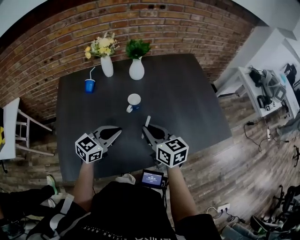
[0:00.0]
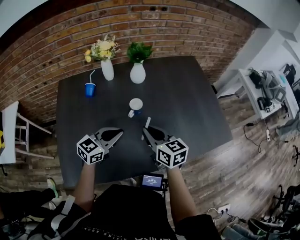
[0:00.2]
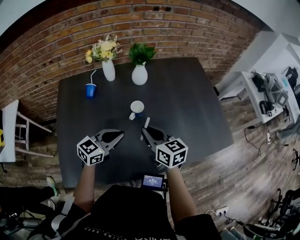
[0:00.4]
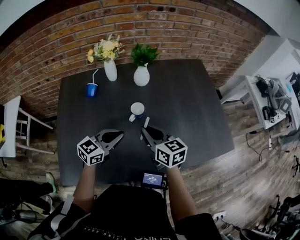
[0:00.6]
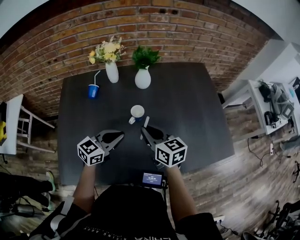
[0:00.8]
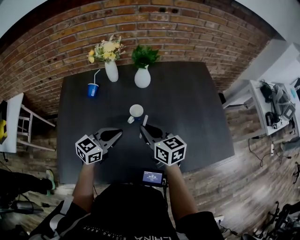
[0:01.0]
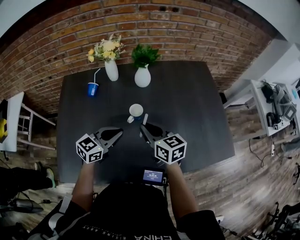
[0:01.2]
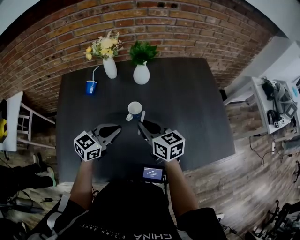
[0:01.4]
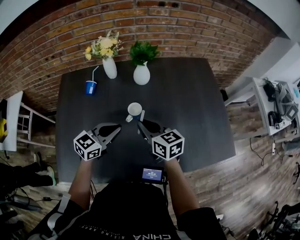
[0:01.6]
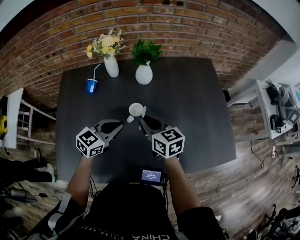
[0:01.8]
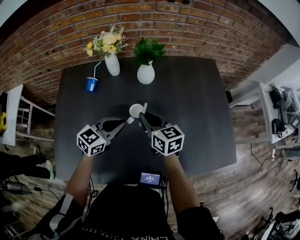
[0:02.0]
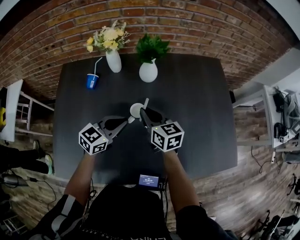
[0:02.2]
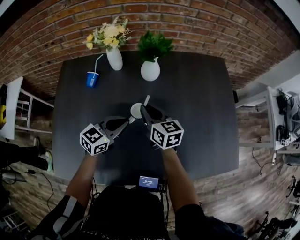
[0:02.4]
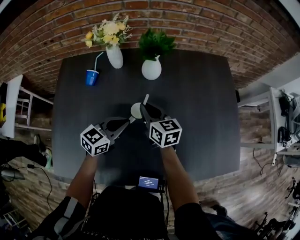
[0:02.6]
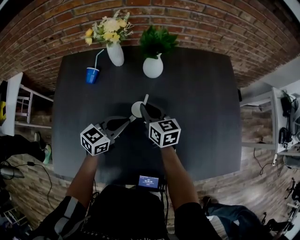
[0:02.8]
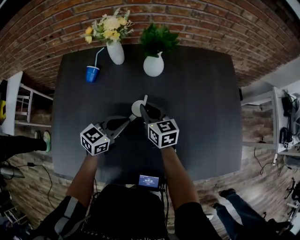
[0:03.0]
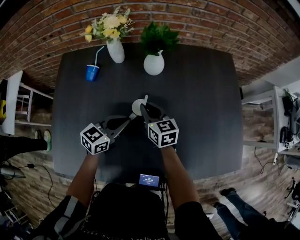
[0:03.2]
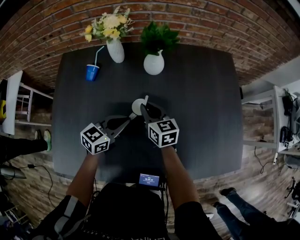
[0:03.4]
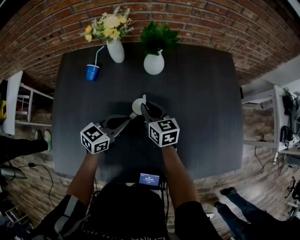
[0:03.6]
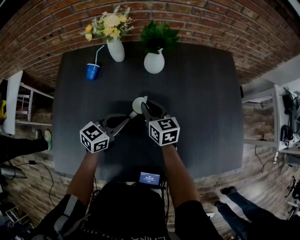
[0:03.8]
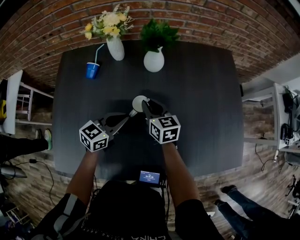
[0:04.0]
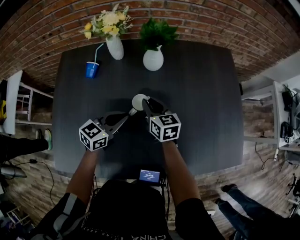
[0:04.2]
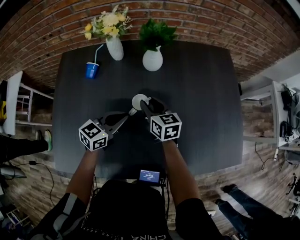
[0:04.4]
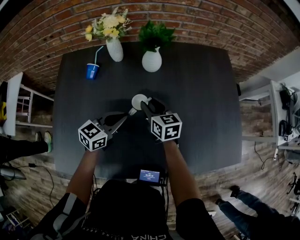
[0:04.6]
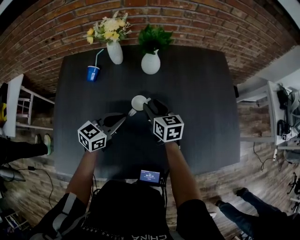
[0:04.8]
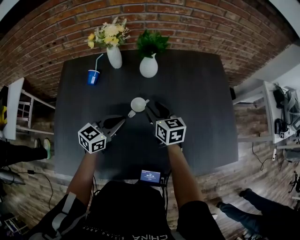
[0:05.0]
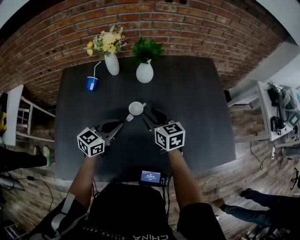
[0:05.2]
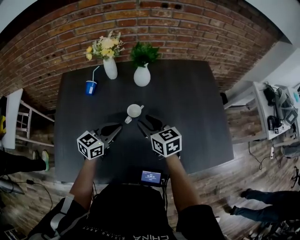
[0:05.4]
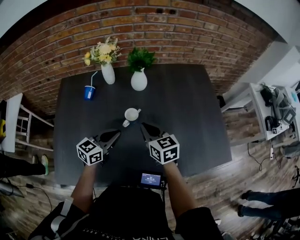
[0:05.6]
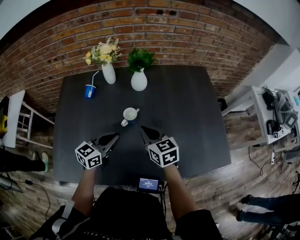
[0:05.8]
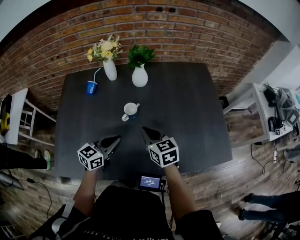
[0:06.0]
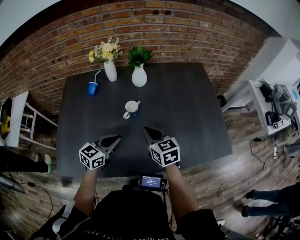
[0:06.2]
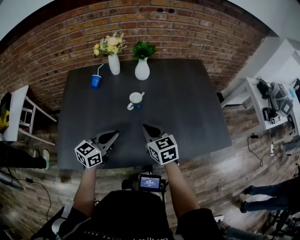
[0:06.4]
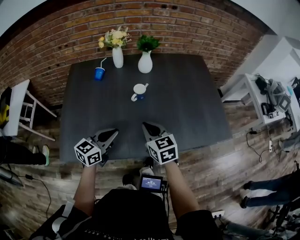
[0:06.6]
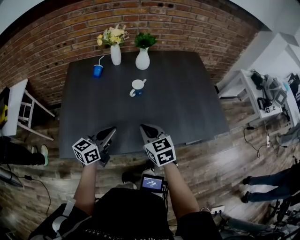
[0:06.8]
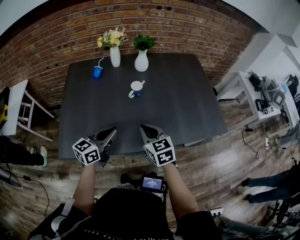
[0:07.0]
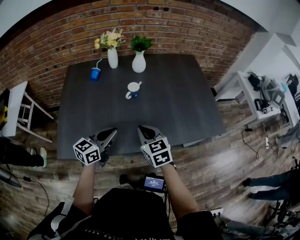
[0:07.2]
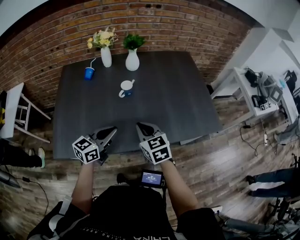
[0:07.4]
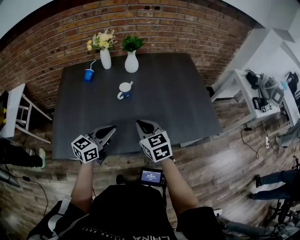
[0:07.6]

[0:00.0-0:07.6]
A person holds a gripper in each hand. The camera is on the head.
0:00.0 to 0:01.6: Both grippers travel together forward, roughly 10 cm.
0:01.6 to 0:03.0: The right gripper moves forward and downward, approximately 15 cm, while the left gripper shifts about 10 cm downward and forward.
0:03.0 to 0:04.6: The right gripper opens up.
0:04.6 to 0:06.0: The left gripper is displaced backward by some 10 cm, while the right gripper is displaced backward, upward and to the right by roughly 15 cm, and closes.
0:06.0 to 0:07.6: Both grippers move backward, some 15 cm.

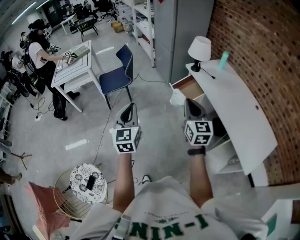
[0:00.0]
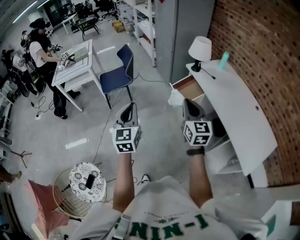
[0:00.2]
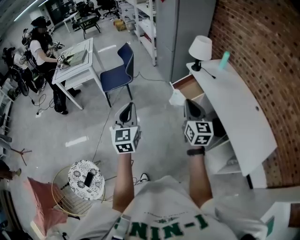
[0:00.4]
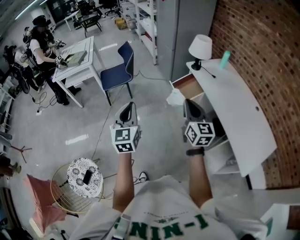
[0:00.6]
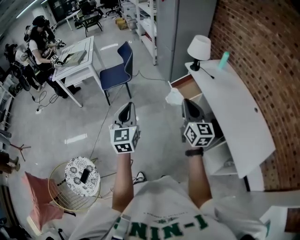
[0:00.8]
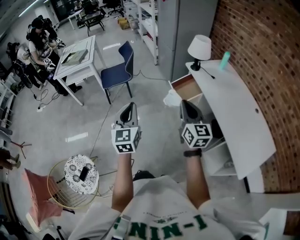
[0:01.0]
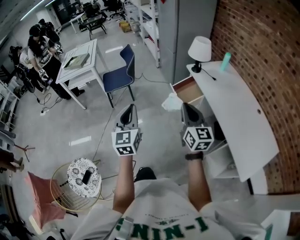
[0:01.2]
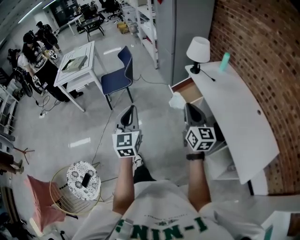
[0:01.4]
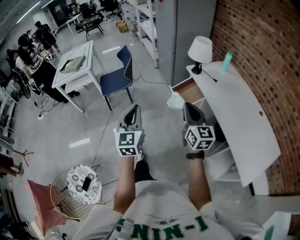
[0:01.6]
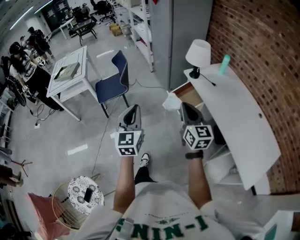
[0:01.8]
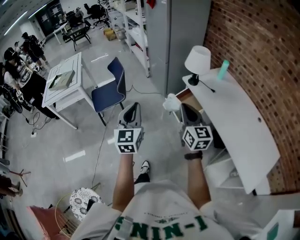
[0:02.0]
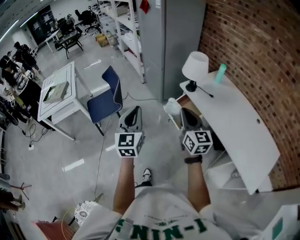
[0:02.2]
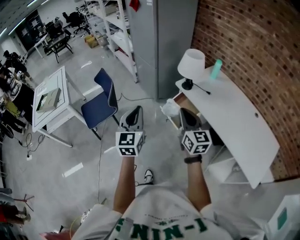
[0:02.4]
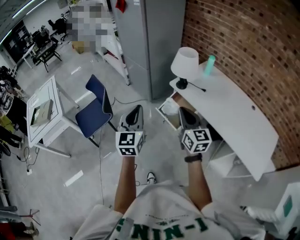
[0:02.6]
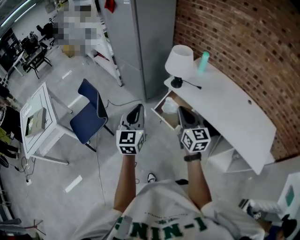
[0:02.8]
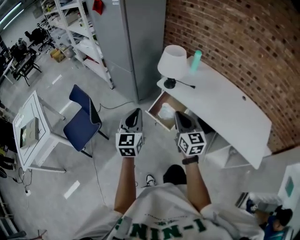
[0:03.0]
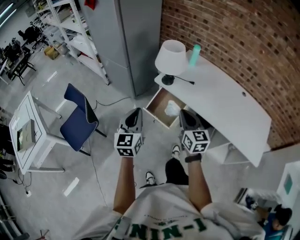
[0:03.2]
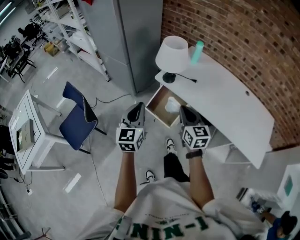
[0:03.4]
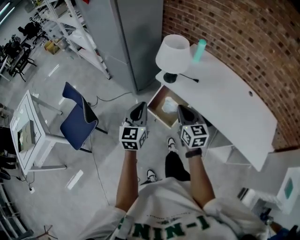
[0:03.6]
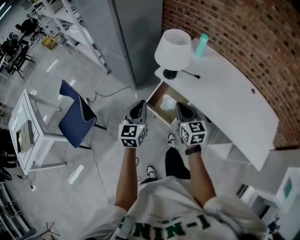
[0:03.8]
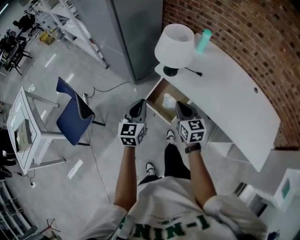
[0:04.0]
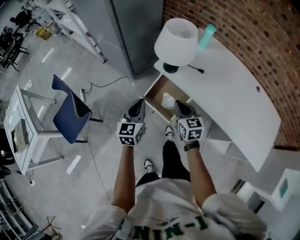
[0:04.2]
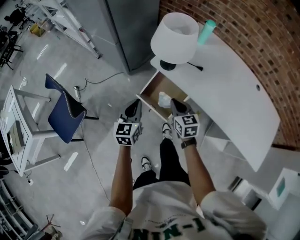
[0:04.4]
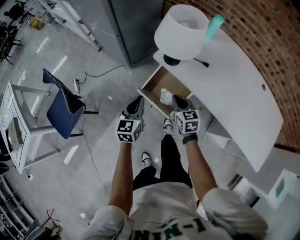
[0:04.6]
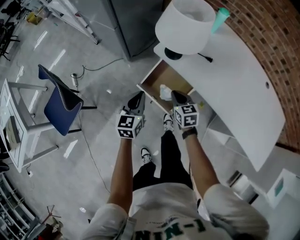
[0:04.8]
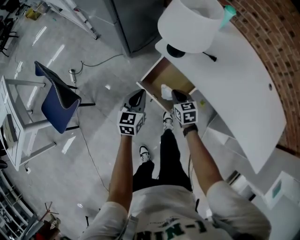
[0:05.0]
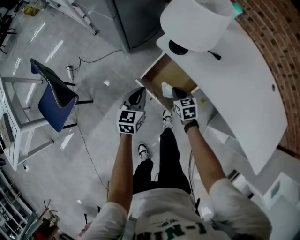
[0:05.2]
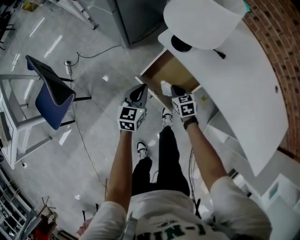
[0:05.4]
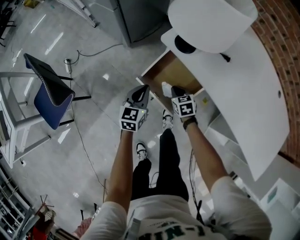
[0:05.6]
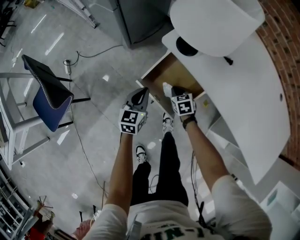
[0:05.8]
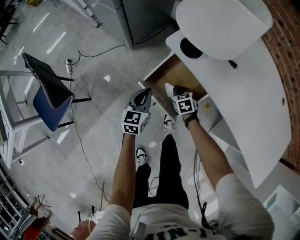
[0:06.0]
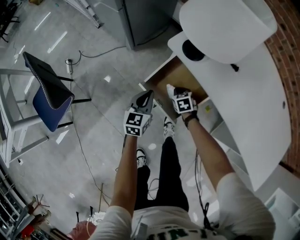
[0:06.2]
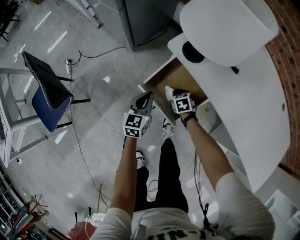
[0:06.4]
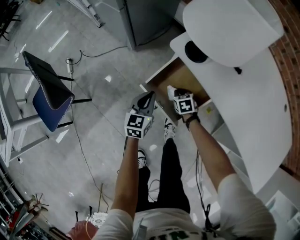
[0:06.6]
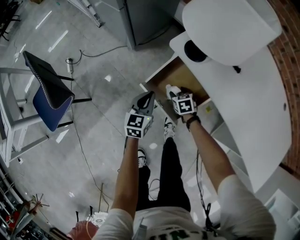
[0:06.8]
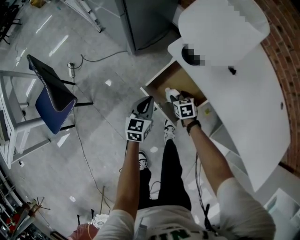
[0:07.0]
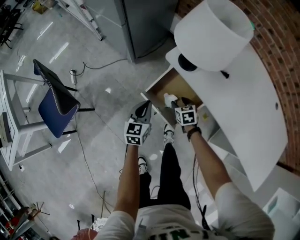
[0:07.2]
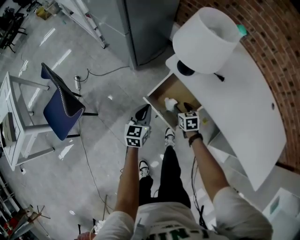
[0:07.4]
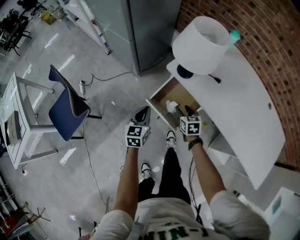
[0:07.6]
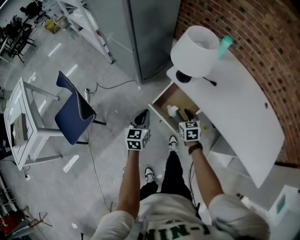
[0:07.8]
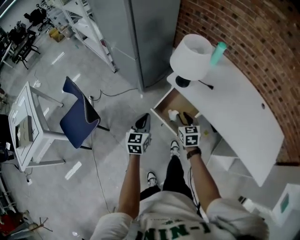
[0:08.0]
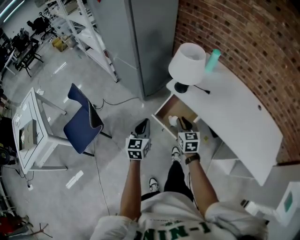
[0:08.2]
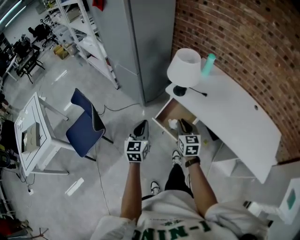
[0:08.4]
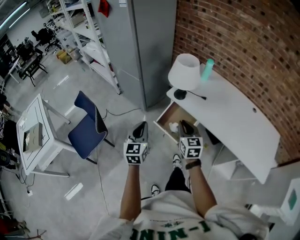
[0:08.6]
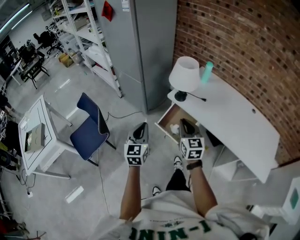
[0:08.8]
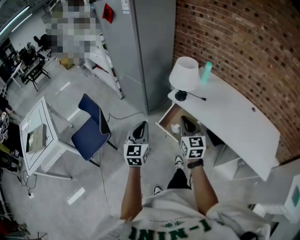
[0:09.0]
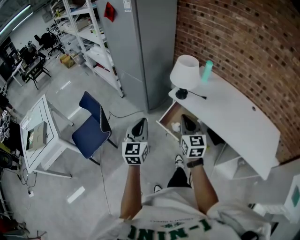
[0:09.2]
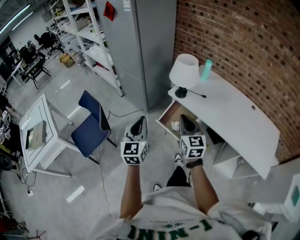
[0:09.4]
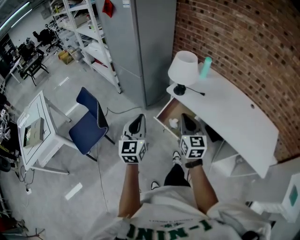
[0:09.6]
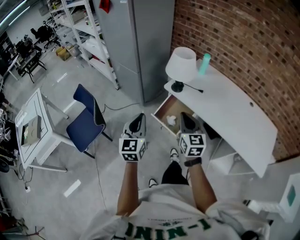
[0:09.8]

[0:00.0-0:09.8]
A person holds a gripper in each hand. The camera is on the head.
0:00.0 to 0:01.4: The two grippers go about 5 cm to the right.
0:01.4 to 0:02.8: The left gripper shifts by approximately 40 cm, and turns by about 30 degrees; the right gripper shifts by approximately 30 cm, and rotates approximately 20 degrees.
0:02.8 to 0:04.2: The grippers both shift downward and forward by about 30 cm. The right gripper swivels about 20 degrees.
0:04.2 to 0:05.6: Both grippers travel together downward, some 30 cm. The right gripper changes its angle by some 30 degrees.
0:05.6 to 0:07.0: The right gripper opens up.
0:07.0 to 0:08.4: Both grippers travel together upward and backward, about 40 cm. The right gripper points its fingers some 40 degrees further upward, and closes its fingers.
0:08.4 to 0:09.8: Both grippers move upward and backward, roughly 10 cm.

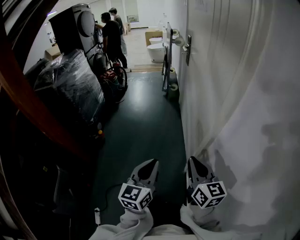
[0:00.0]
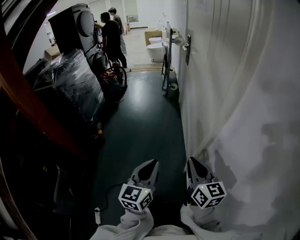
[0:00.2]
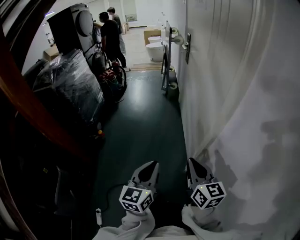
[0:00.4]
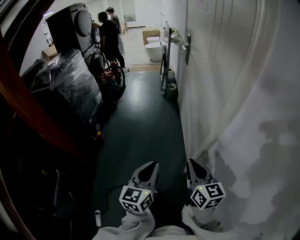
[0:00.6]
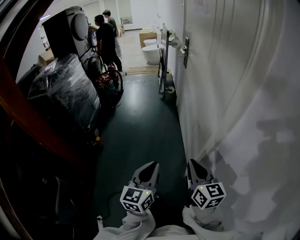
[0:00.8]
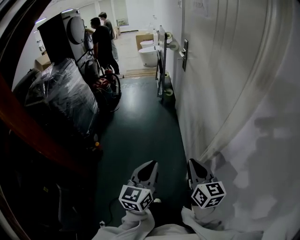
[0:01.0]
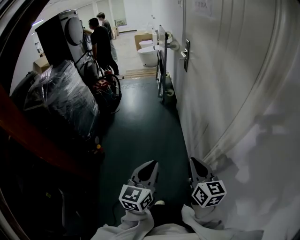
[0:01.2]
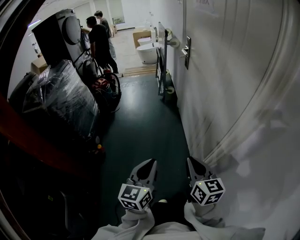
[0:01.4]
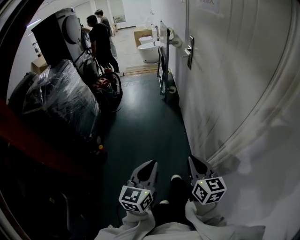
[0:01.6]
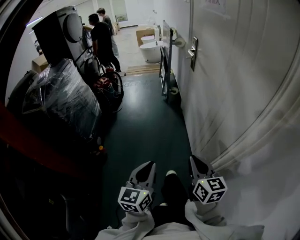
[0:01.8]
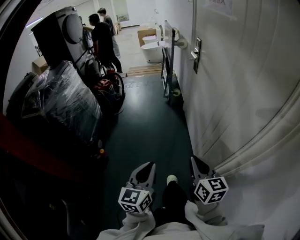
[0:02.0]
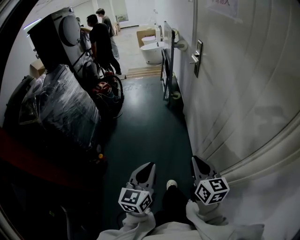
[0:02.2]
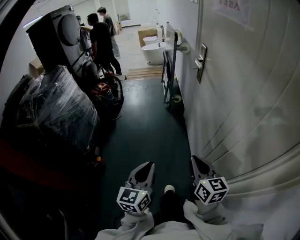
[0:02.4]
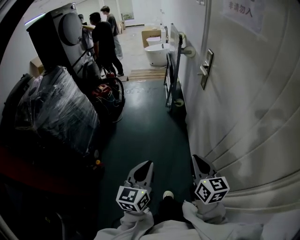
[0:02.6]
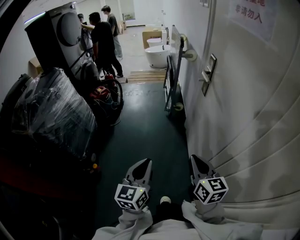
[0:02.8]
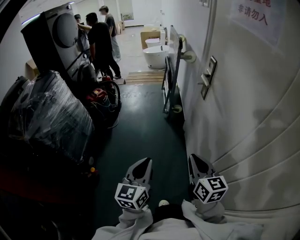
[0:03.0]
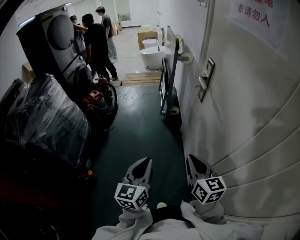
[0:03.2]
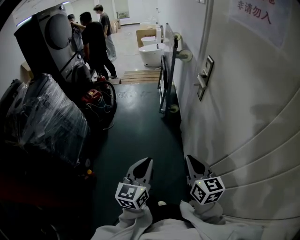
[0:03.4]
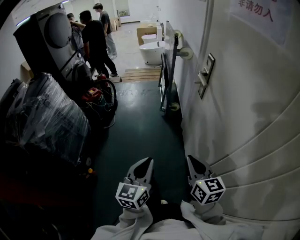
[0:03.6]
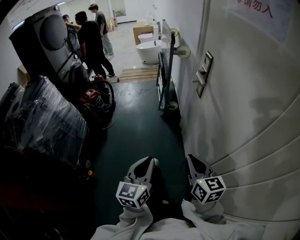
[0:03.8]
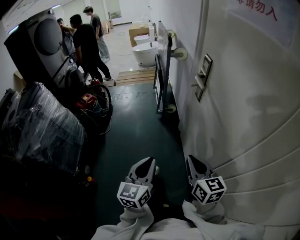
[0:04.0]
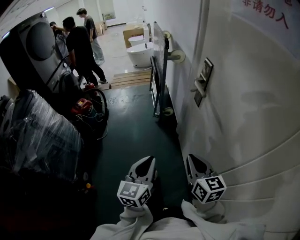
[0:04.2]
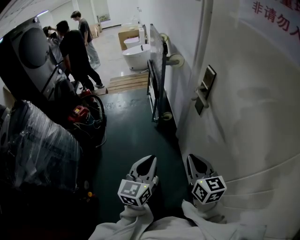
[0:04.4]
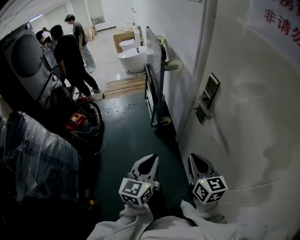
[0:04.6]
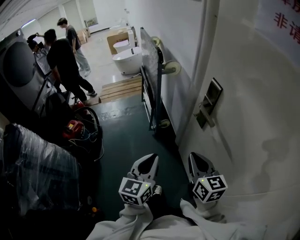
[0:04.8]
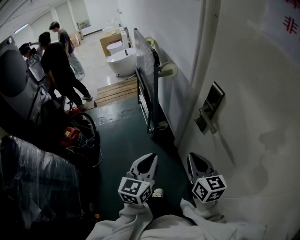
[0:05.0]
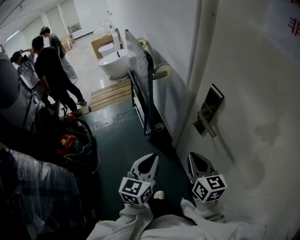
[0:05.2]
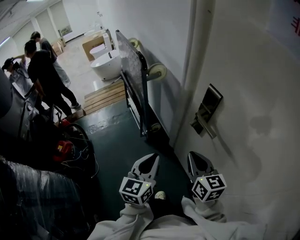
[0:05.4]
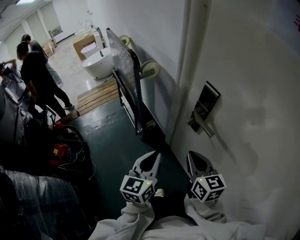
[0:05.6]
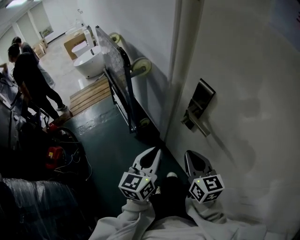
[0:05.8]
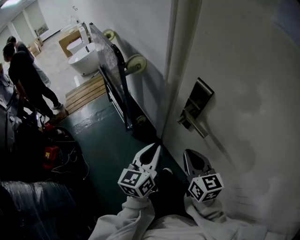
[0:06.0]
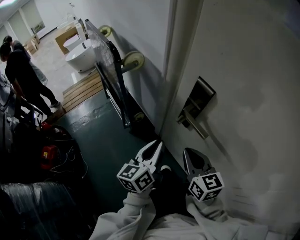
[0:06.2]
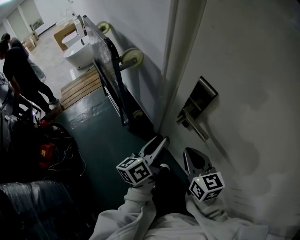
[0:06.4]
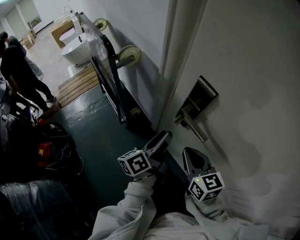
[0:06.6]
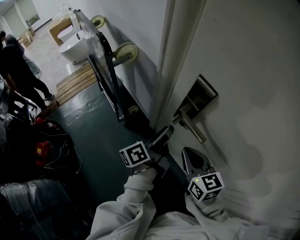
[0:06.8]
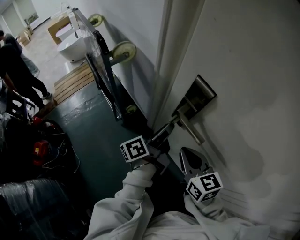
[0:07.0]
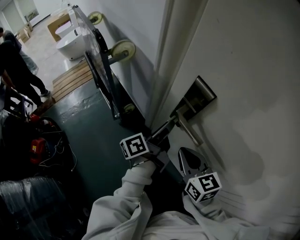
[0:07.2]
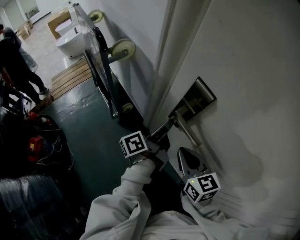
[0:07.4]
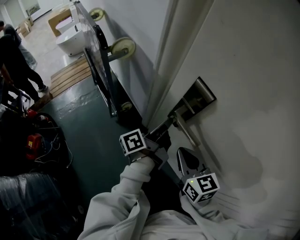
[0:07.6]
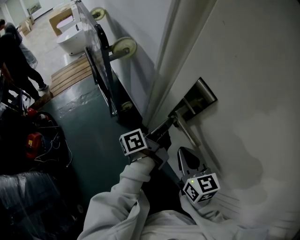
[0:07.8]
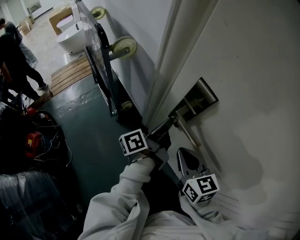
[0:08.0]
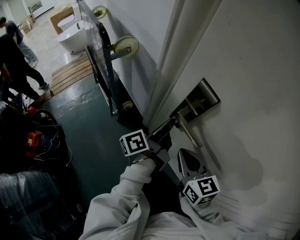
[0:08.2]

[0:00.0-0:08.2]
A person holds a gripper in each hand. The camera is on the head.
0:00.0 to 0:01.6: Both grippers move forward and to the left, approximately 20 cm.
0:01.6 to 0:03.2: The two grippers travel together, forward, approximately 40 cm.
0:03.2 to 0:05.0: Both grippers move forward, about 35 cm. The left gripper turns by about 20 degrees.
0:05.0 to 0:06.6: The right gripper is displaced forward by roughly 10 cm. Meanwhile the left gripper travels forward and to the right by approximately 20 cm, rotates around the line of its fingers by roughly 50 degrees, counterclockwise from behind, and opens.
0:06.6 to 0:08.2: The left gripper shifts roughly 5 cm forward, and closes up.
